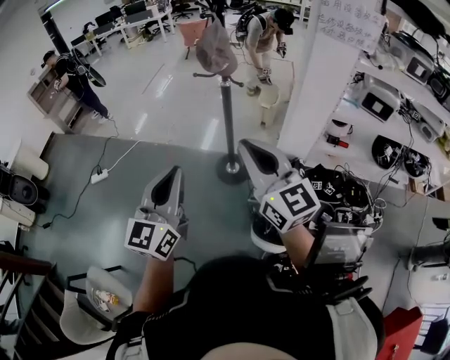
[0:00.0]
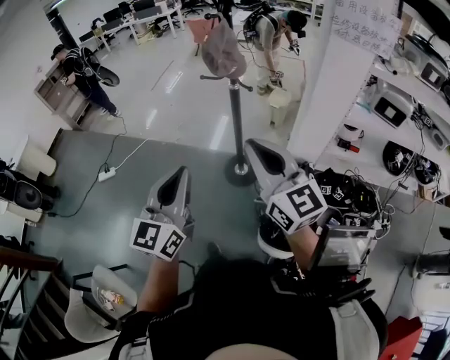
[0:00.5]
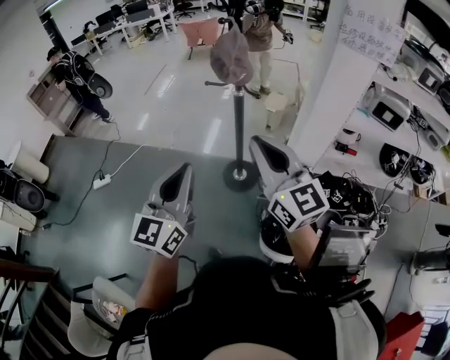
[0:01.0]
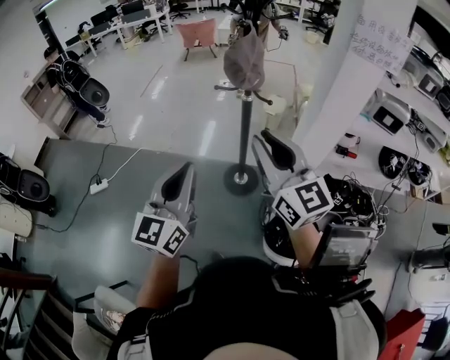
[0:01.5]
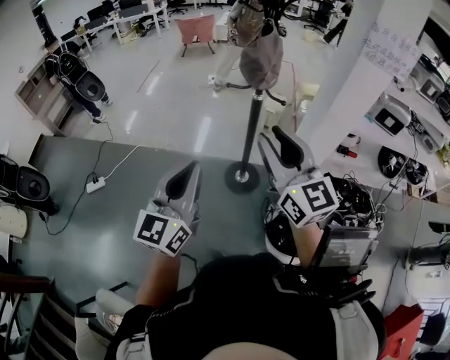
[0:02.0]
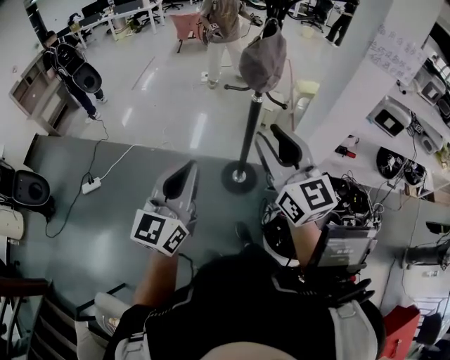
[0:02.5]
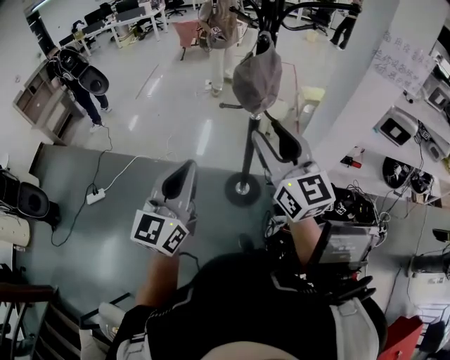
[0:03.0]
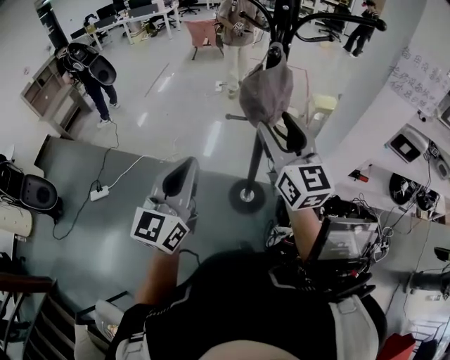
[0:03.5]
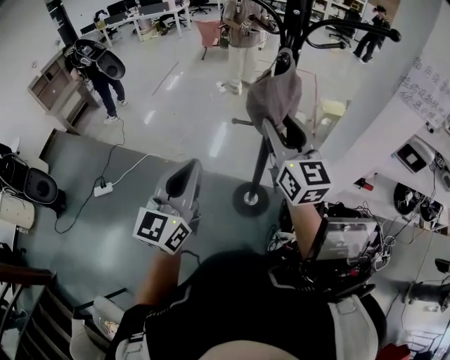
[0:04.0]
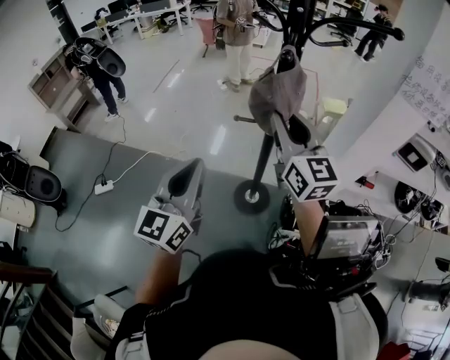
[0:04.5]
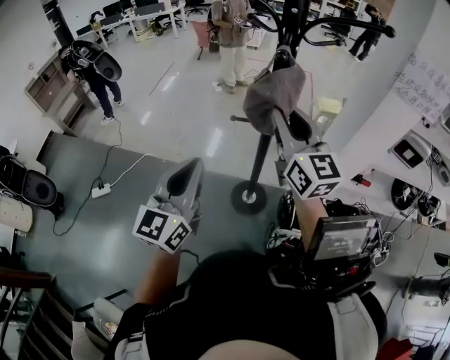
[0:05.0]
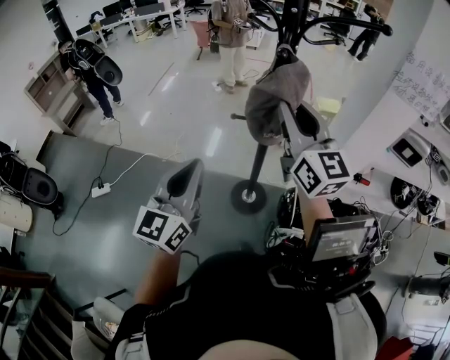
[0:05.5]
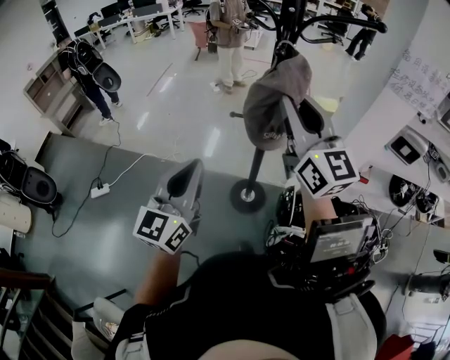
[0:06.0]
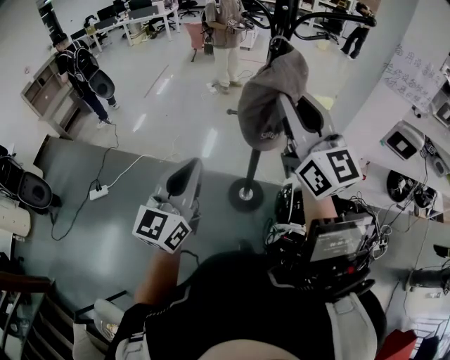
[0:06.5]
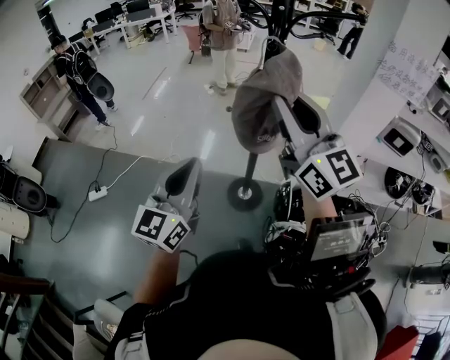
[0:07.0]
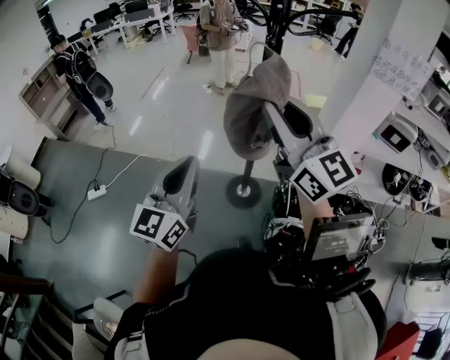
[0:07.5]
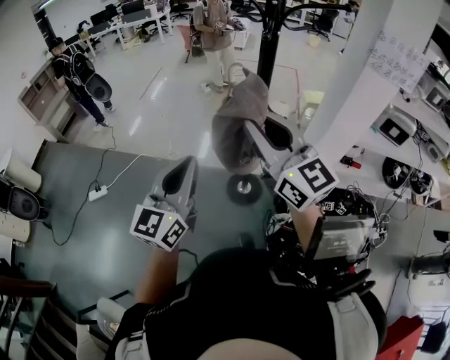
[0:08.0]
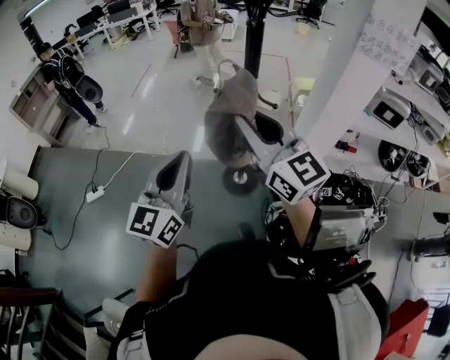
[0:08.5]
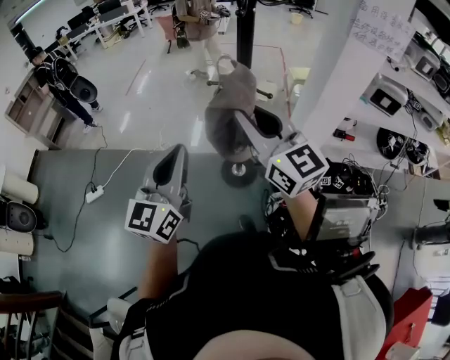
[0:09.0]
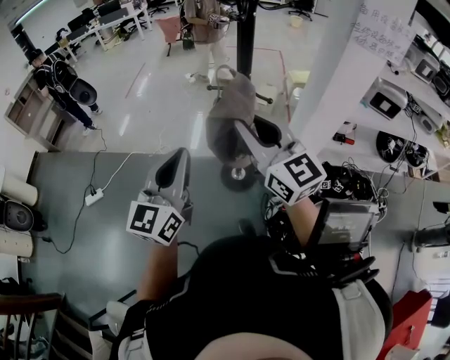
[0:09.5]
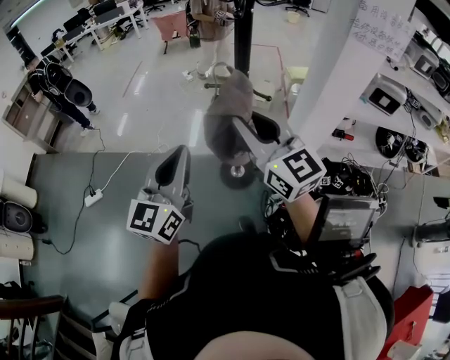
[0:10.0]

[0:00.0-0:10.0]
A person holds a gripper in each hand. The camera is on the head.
0:00.0 to 0:02.0: The grippers both shift forward and to the left by roughly 20 cm. The right gripper opens up.
0:02.0 to 0:04.0: Both grippers travel together forward, approximately 20 cm.
0:04.0 to 0:06.0: The right gripper goes approximately 10 cm upward and backward, and closes up.
0:06.0 to 0:08.0: The left gripper moves backward, approximately 5 cm. The right gripper moves backward and to the left, roughly 15 cm.
0:08.0 to 0:10.0: The grippers move only a little.

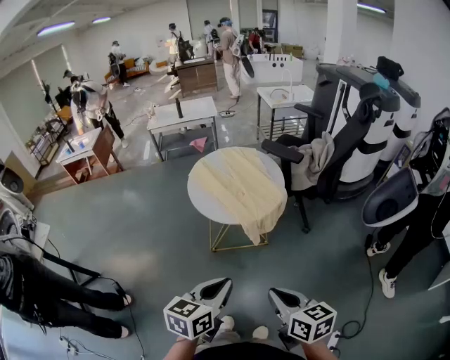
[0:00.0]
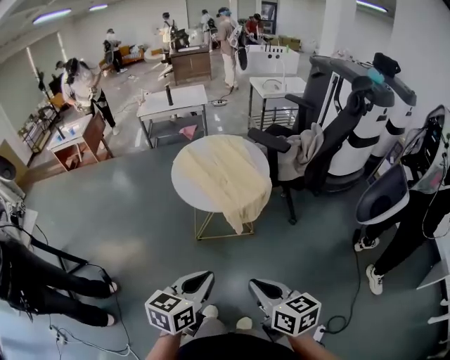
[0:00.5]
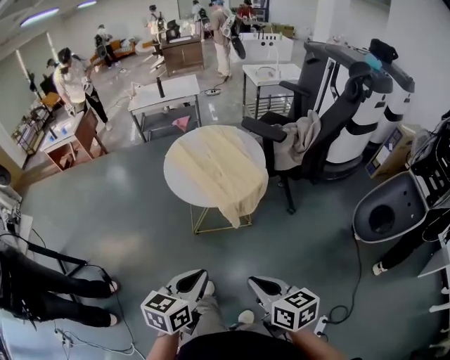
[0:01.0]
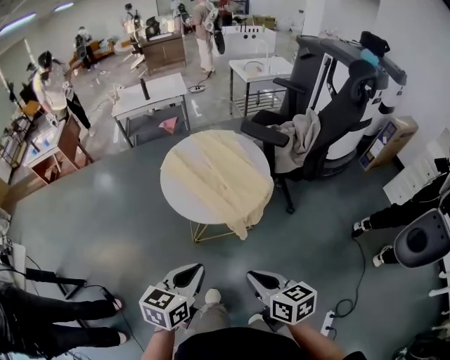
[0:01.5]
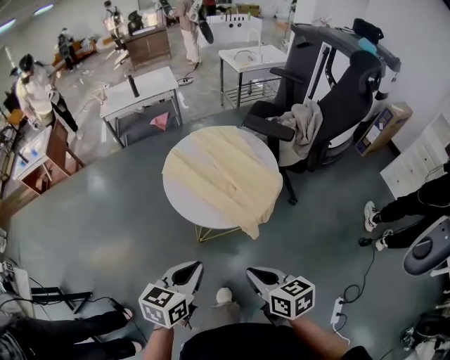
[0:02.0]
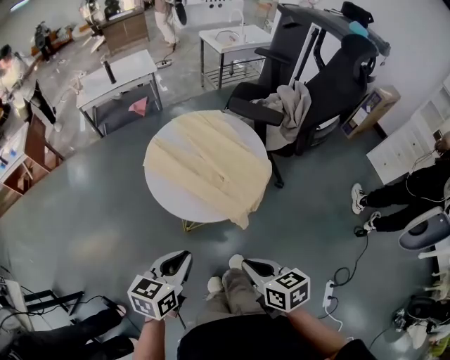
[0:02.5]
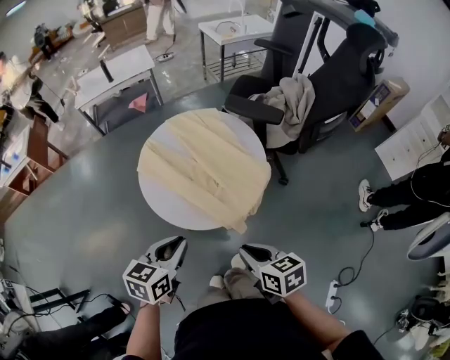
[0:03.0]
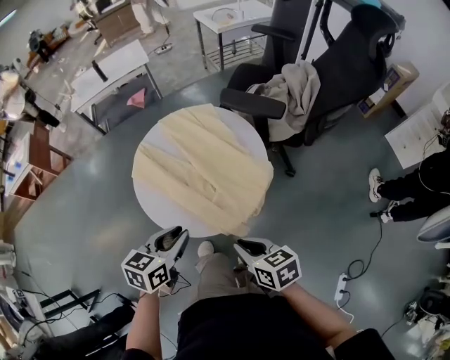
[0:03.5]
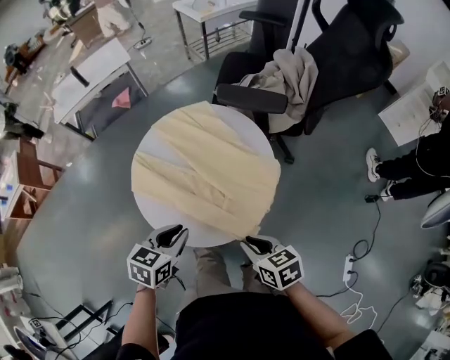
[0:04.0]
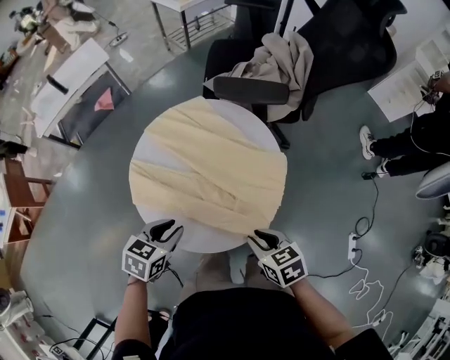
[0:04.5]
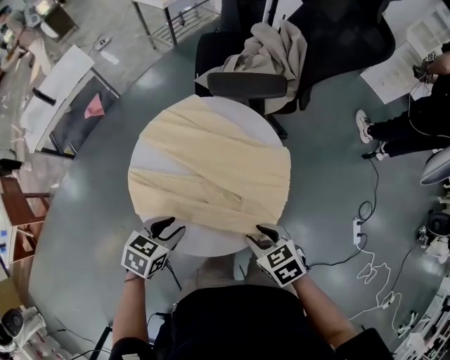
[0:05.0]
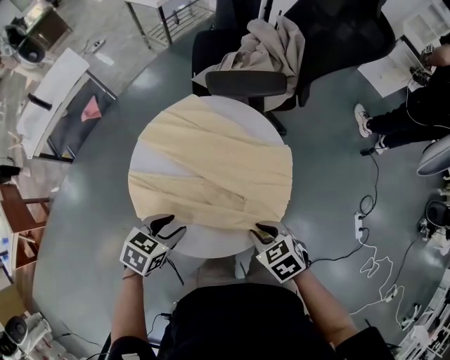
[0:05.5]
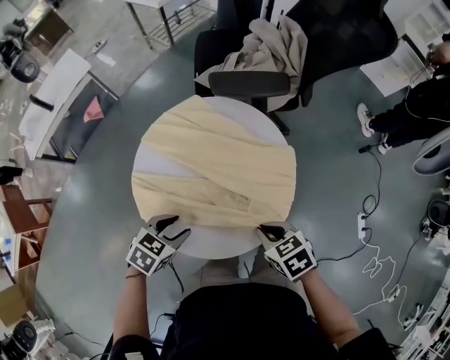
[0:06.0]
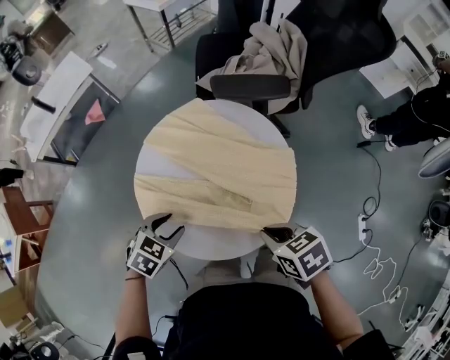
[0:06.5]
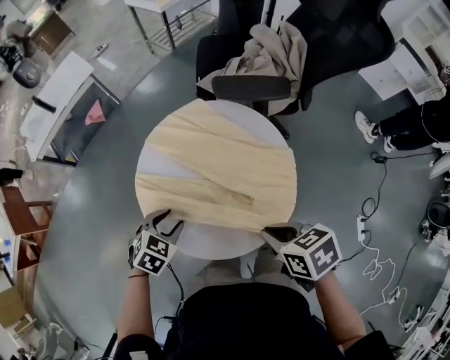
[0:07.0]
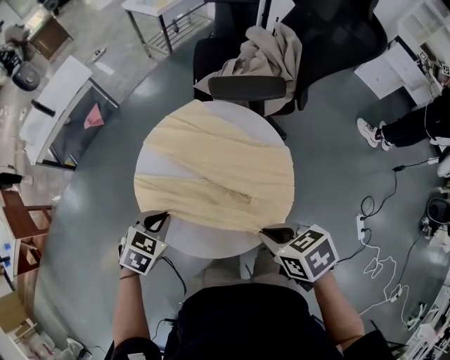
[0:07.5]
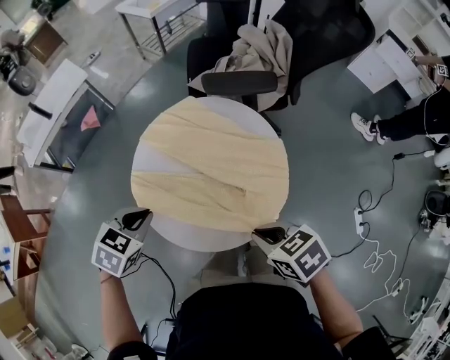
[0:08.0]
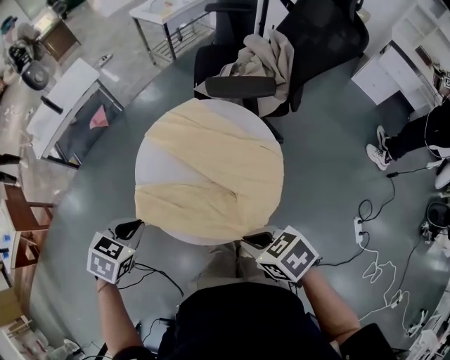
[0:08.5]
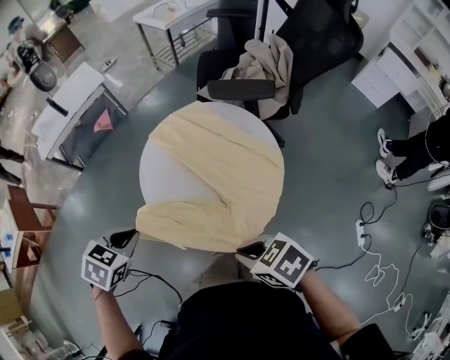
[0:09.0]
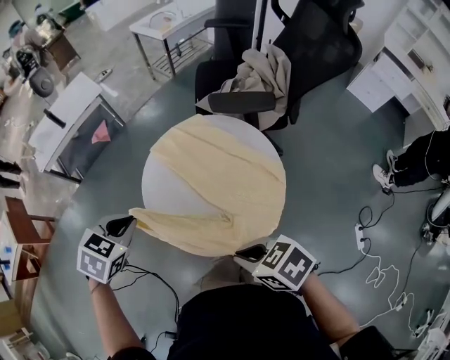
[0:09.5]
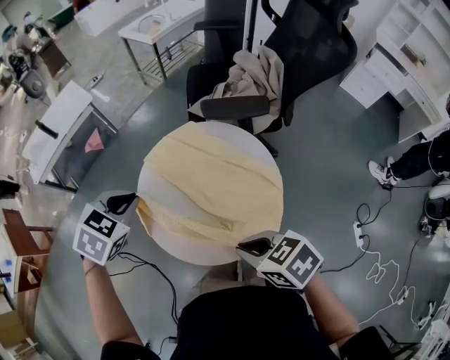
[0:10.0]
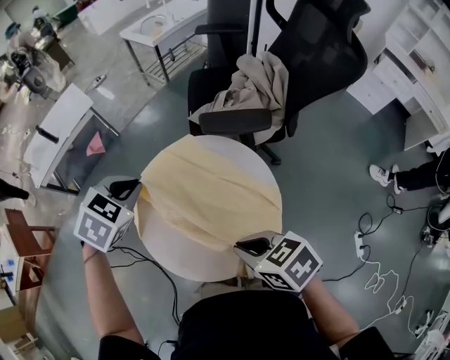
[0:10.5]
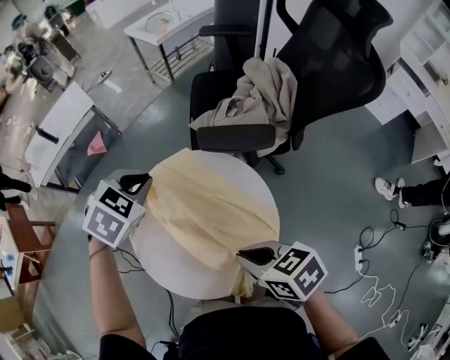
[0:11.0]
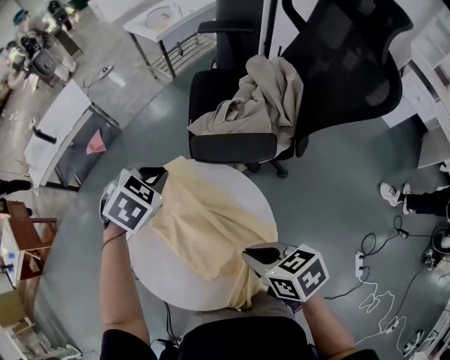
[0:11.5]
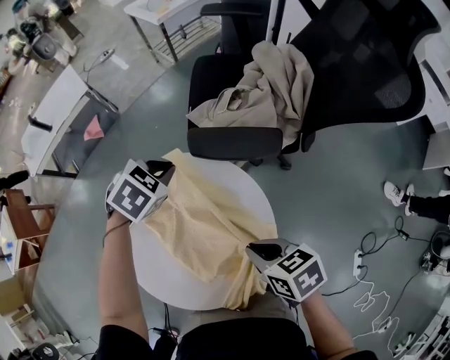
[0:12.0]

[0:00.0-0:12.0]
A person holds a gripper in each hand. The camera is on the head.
0:00.0 to 0:02.0: Both grippers travel together forward and to the left, approximately 20 cm.
0:02.0 to 0:04.0: Both grippers move forward and downward, about 25 cm. The left gripper rotates some 20 degrees.
0:04.0 to 0:06.0: The left gripper heads to the left, downward and forward, covering some 15 cm, turns by about 40 degrees, and opens up, while the right gripper heads to the left and forward, covering some 10 cm.
0:06.0 to 0:08.0: The left gripper travels upward and to the left by roughly 10 cm, and closes. Meanwhile the right gripper heads upward, covering about 10 cm.
0:08.0 to 0:10.0: The left gripper travels upward and forward by roughly 10 cm; the right gripper shifts about 5 cm upward, and travels backward and back again, some 5 cm each way.
0:10.0 to 0:12.0: The two grippers go some 30 cm to the right, forward and downward.

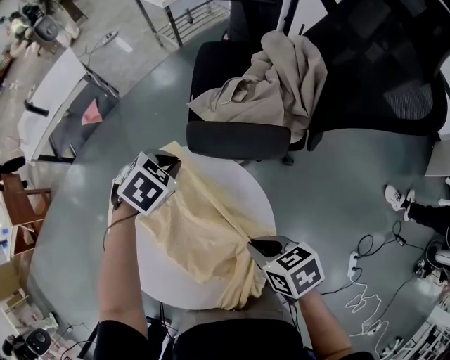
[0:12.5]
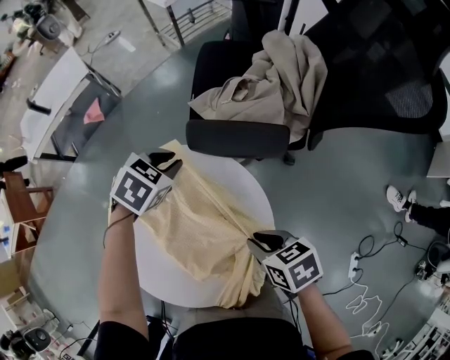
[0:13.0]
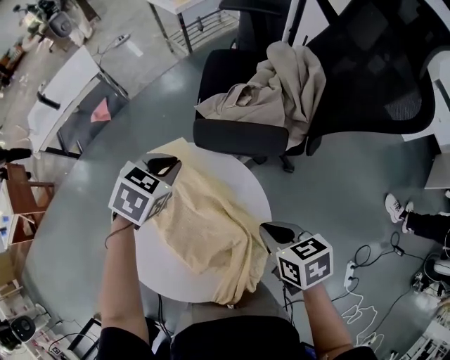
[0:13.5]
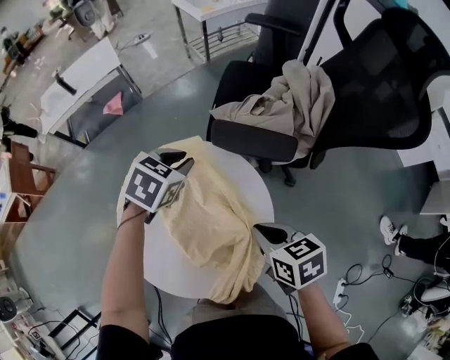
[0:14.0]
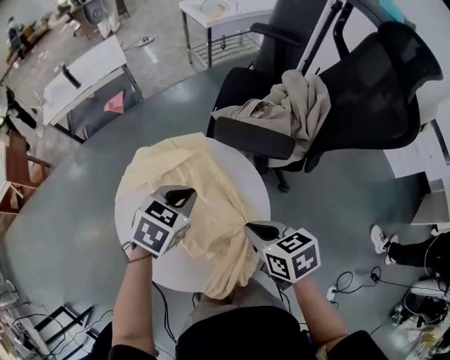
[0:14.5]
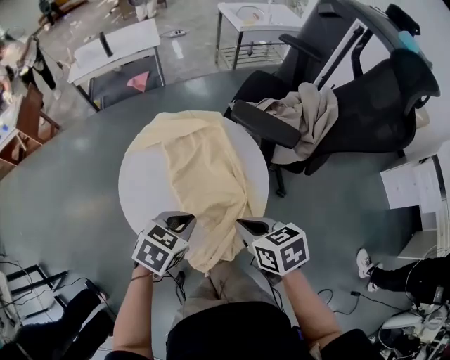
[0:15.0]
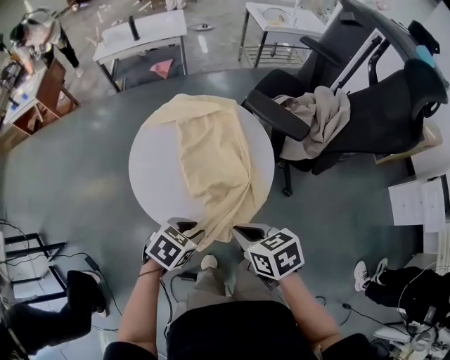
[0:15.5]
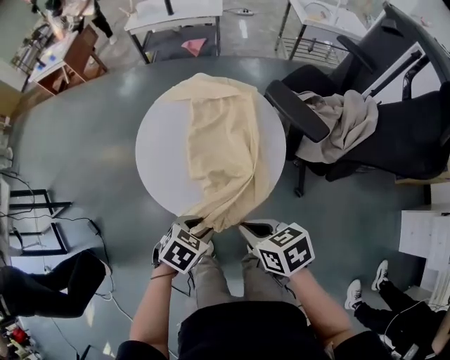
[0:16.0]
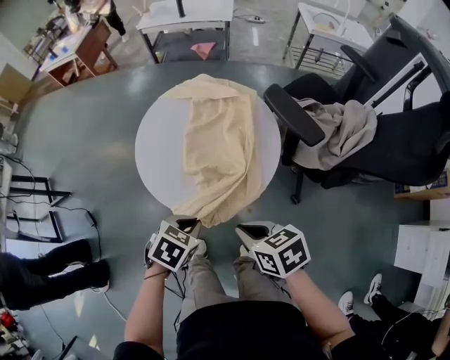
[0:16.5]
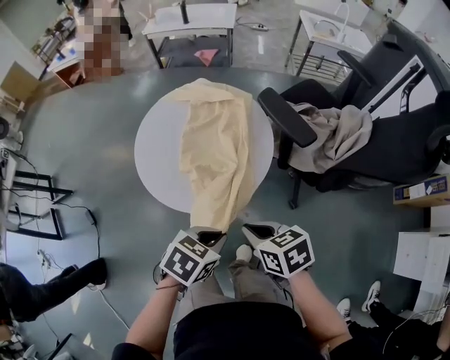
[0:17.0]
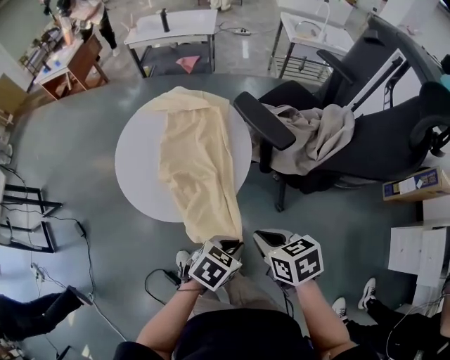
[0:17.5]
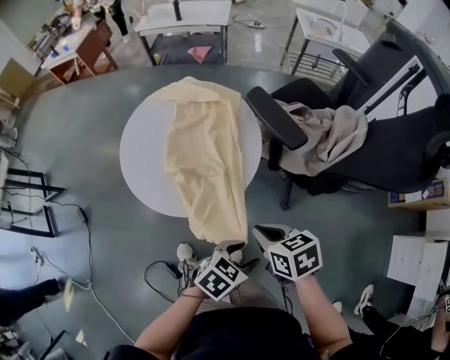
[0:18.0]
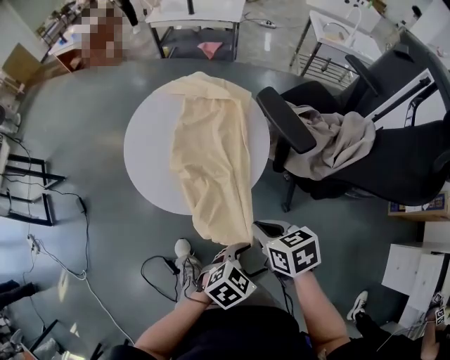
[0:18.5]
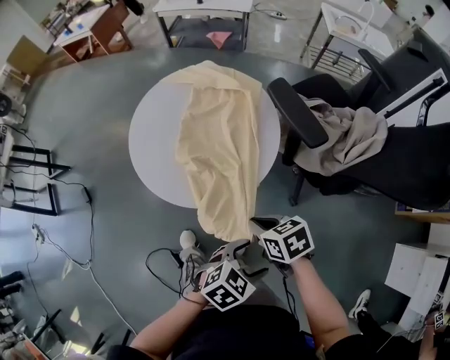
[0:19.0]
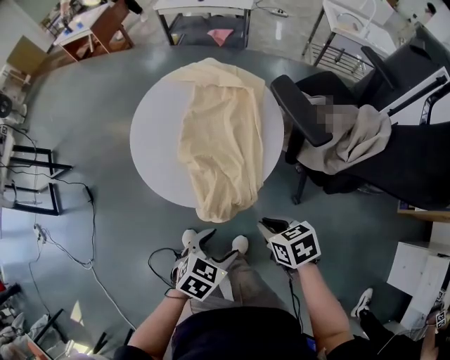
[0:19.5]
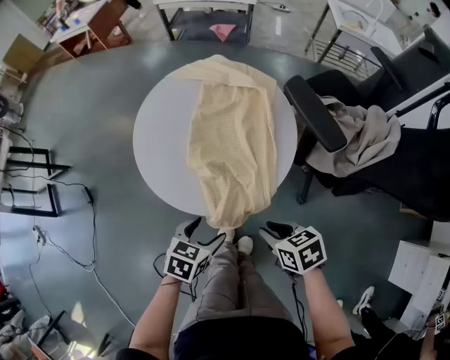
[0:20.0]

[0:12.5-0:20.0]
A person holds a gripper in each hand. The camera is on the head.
0:12.5 to 0:14.5: The right gripper shifts roughly 5 cm upward. Meanwhile the left gripper is displaced backward and upward by some 20 cm, and changes its angle by roughly 30 degrees.
0:14.5 to 0:16.5: The right gripper ends up some 20 cm from where it was, and swivels roughly 40 degrees. Meanwhile the left gripper shifts by some 30 cm, turns by approximately 40 degrees, and opens and closes again.
0:16.5 to 0:18.0: The right gripper shifts some 15 cm to the right. Meanwhile the left gripper shifts roughly 25 cm to the right, turns by approximately 20 degrees, and opens.
0:18.0 to 0:20.0: The right gripper heads downward, covering some 10 cm. The left gripper moves some 20 cm, and changes its angle by roughly 30 degrees.
